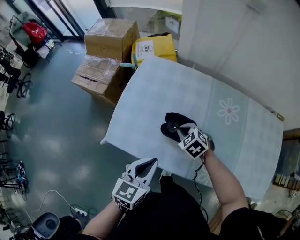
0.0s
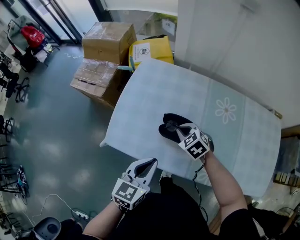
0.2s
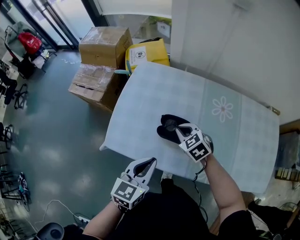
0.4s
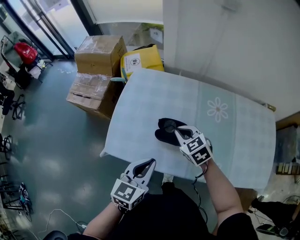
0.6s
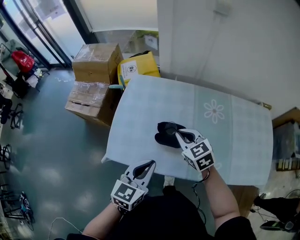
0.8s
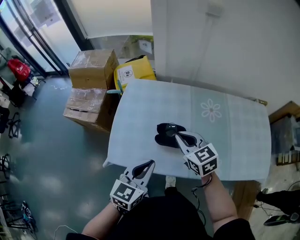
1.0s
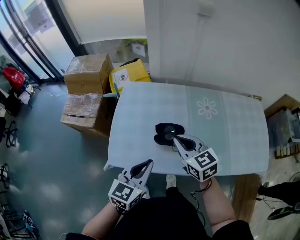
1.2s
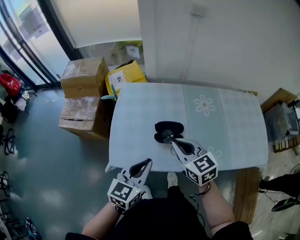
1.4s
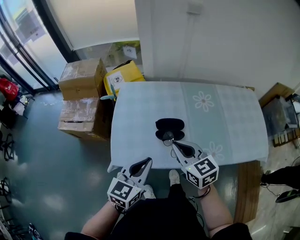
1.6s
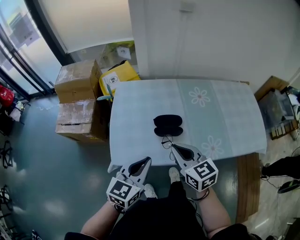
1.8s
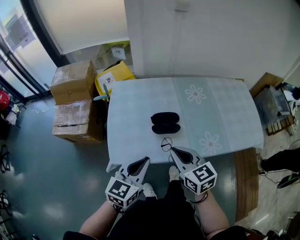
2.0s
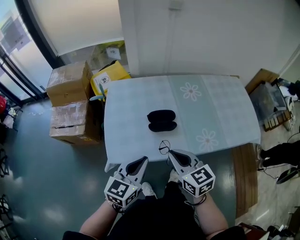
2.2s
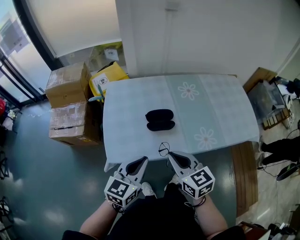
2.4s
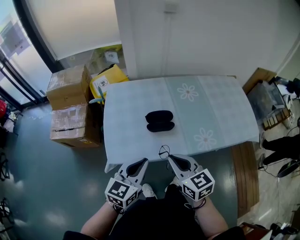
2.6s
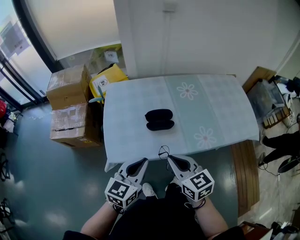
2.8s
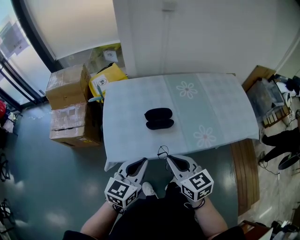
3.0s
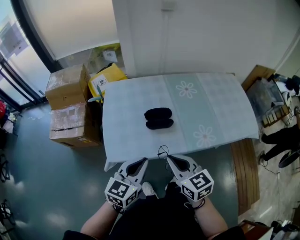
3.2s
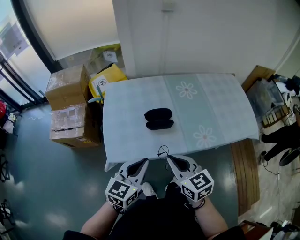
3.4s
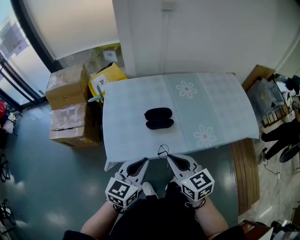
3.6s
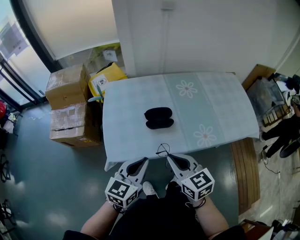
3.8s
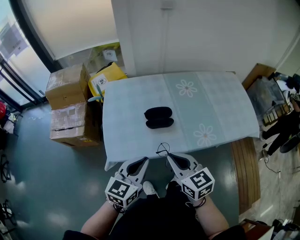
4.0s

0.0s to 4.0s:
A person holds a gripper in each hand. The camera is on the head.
0.0s to 1.4s: The left gripper moves upward, approximately 5 cm, and turns by roughly 20 degrees. The right gripper shifts some 20 cm upward and backward, and tilts its fingers some 30 degrees upward.
1.4s to 2.6s: The right gripper travels backward by about 15 cm; the left gripper moves backward, some 5 cm.
2.6s to 4.0s: Both grippers stay put.

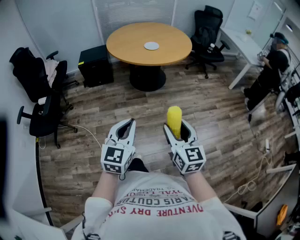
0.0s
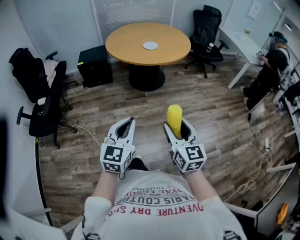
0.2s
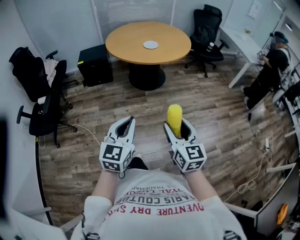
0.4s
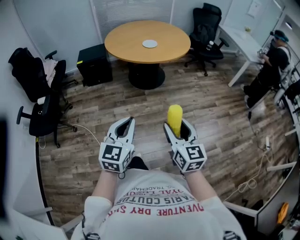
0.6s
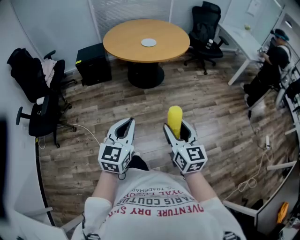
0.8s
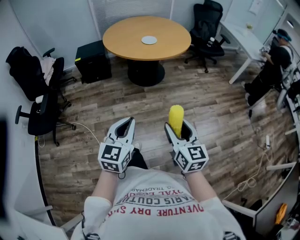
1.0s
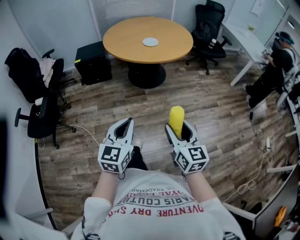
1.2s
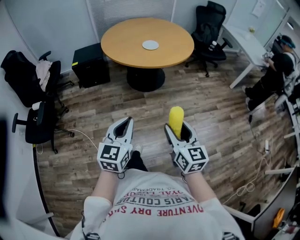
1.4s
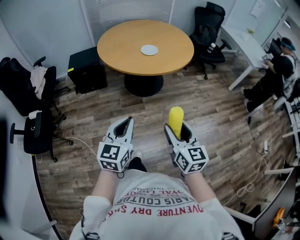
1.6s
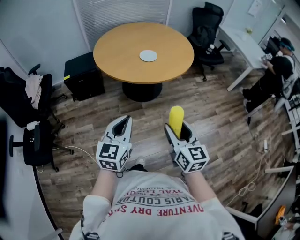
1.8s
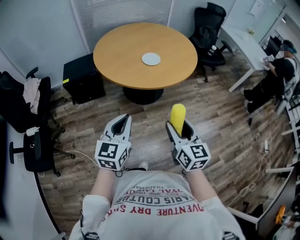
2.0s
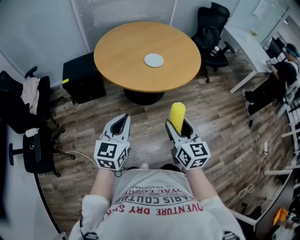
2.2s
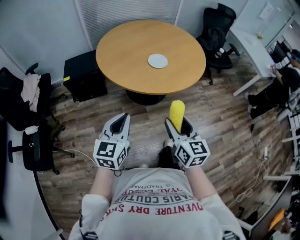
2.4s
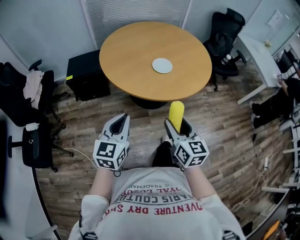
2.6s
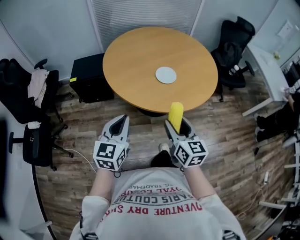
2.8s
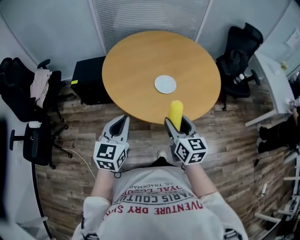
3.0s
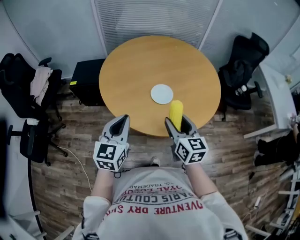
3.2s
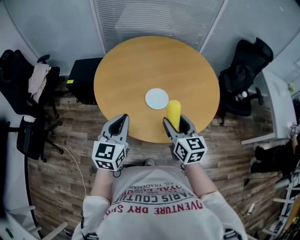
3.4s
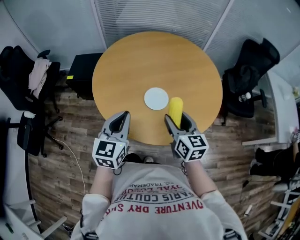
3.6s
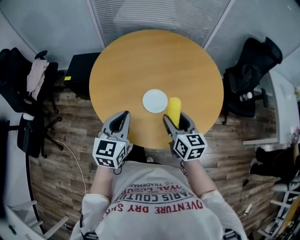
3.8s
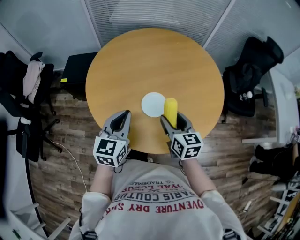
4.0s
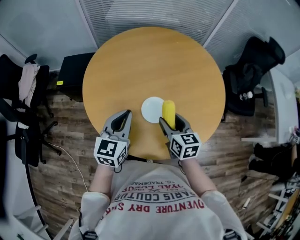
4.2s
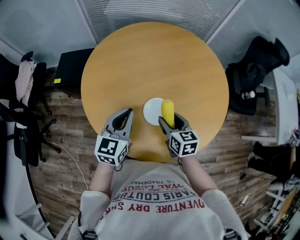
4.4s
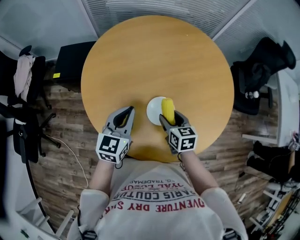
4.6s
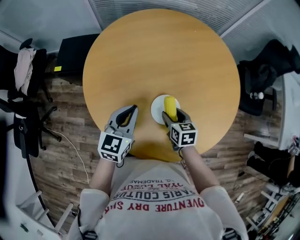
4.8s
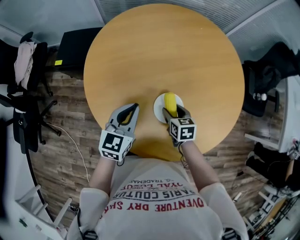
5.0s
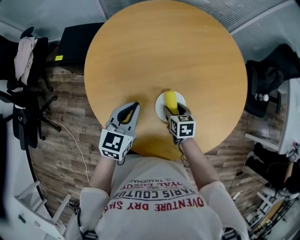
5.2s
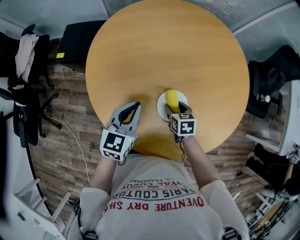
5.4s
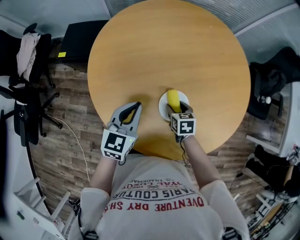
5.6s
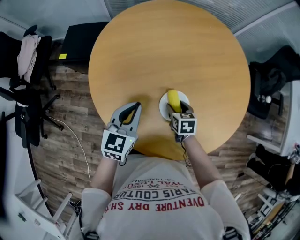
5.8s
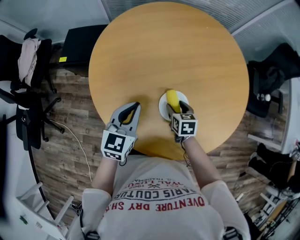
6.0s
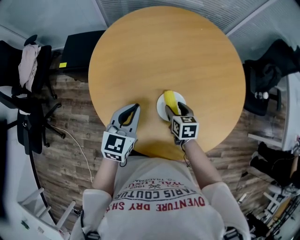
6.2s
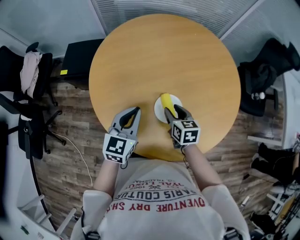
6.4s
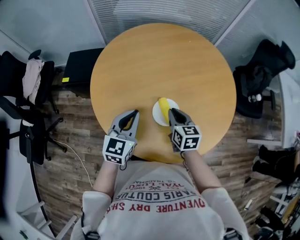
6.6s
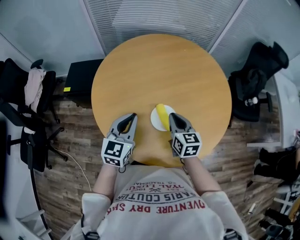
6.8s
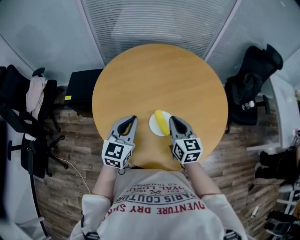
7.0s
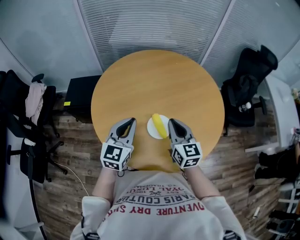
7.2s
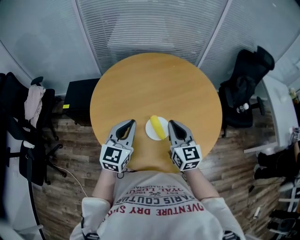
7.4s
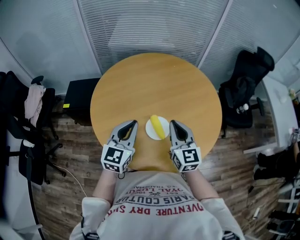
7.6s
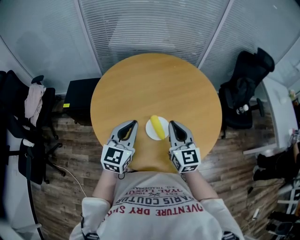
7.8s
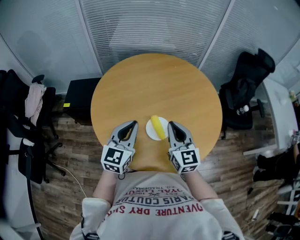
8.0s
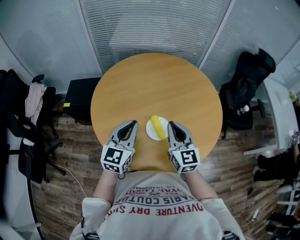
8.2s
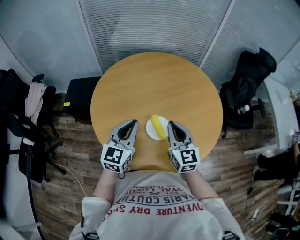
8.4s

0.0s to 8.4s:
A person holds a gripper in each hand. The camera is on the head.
0.0s to 1.4s: Both grippers travel together forward, roughly 10 cm.
1.4s to 2.8s: The two grippers go about 40 cm forward.
2.8s to 4.2s: The left gripper shifts some 35 cm forward and to the right, while the right gripper is displaced forward by about 30 cm, and turns by roughly 20 degrees.
4.2s to 5.6s: The right gripper is displaced downward by some 20 cm, and rotates roughly 30 degrees; the left gripper goes approximately 10 cm downward and forward.
5.6s to 7.0s: The right gripper heads upward, covering about 25 cm, tilts its fingers approximately 40 degrees upward, and closes. The left gripper goes some 10 cm upward.
7.0s to 8.4s: The right gripper is displaced upward by some 5 cm.

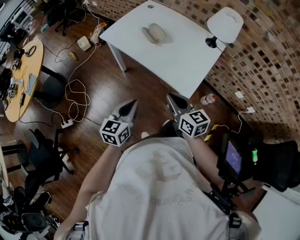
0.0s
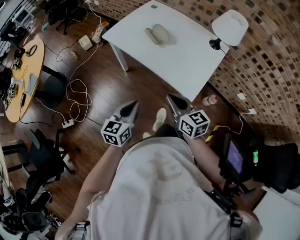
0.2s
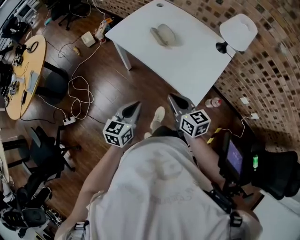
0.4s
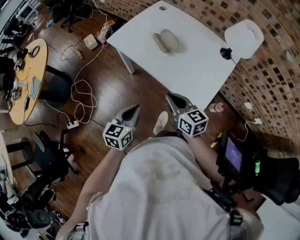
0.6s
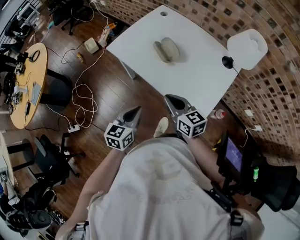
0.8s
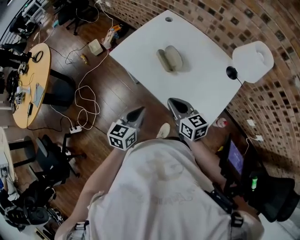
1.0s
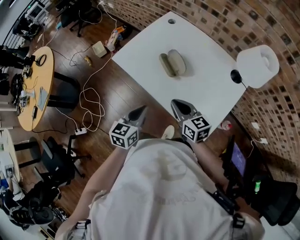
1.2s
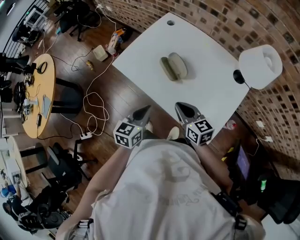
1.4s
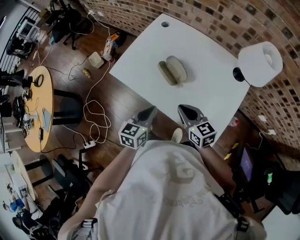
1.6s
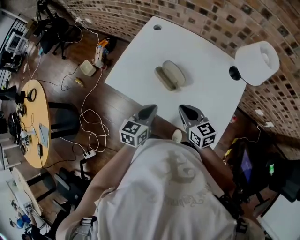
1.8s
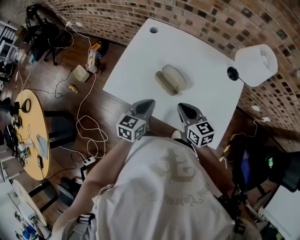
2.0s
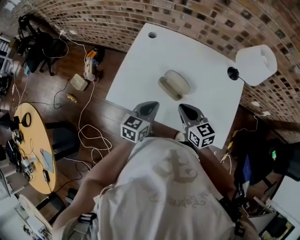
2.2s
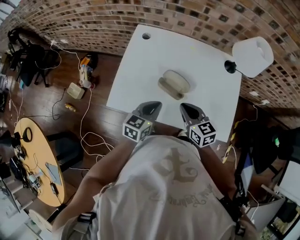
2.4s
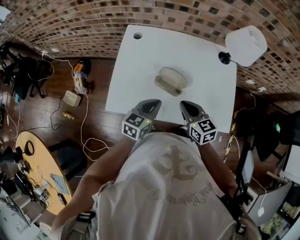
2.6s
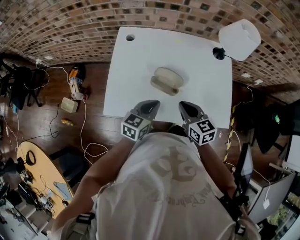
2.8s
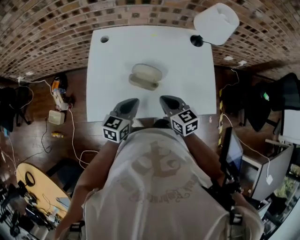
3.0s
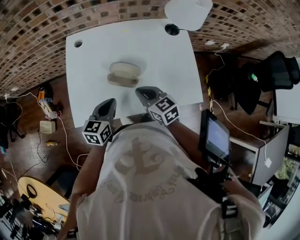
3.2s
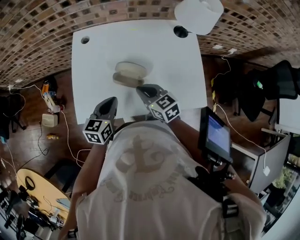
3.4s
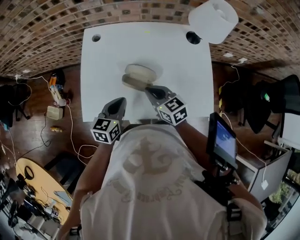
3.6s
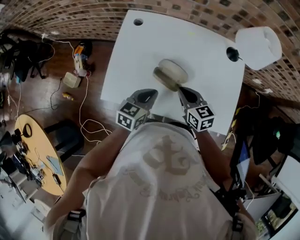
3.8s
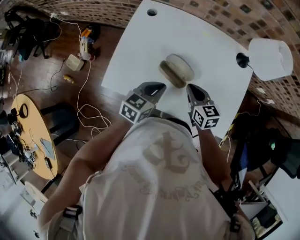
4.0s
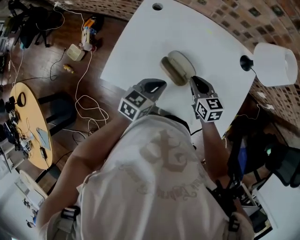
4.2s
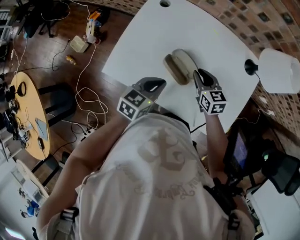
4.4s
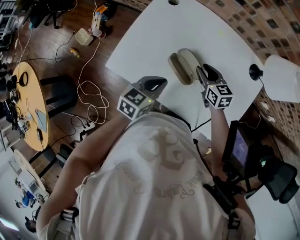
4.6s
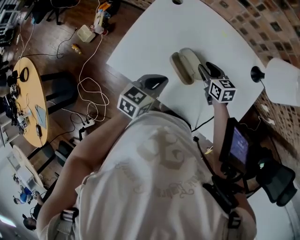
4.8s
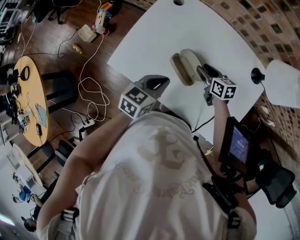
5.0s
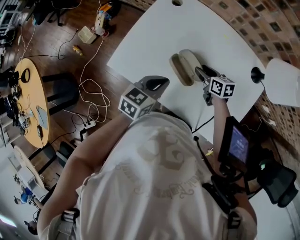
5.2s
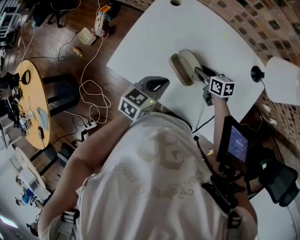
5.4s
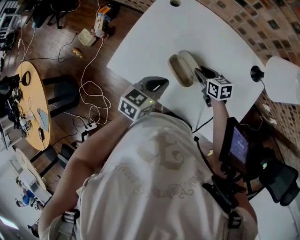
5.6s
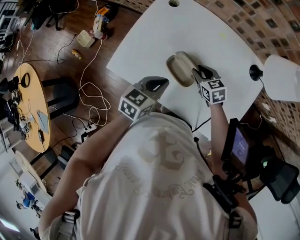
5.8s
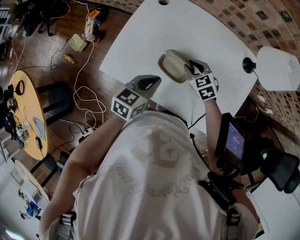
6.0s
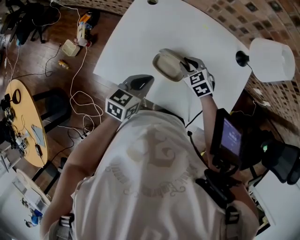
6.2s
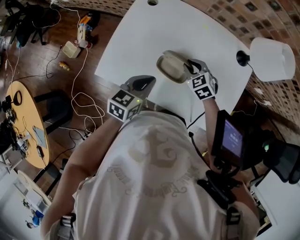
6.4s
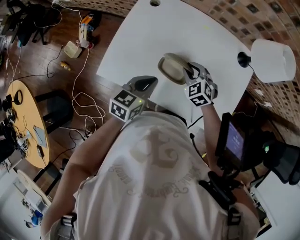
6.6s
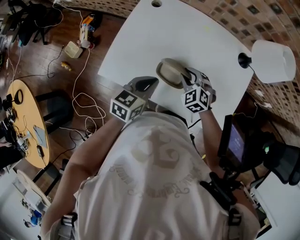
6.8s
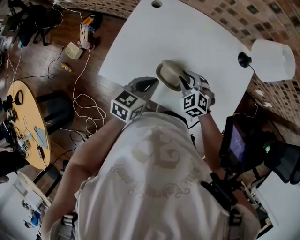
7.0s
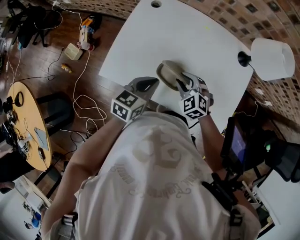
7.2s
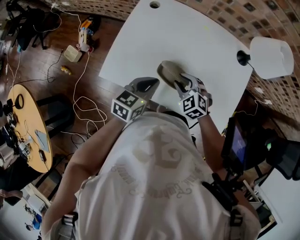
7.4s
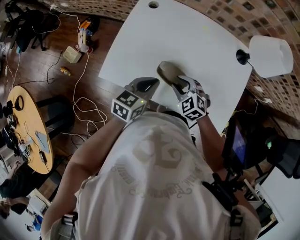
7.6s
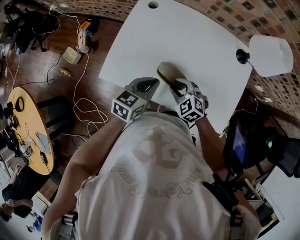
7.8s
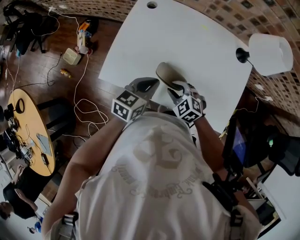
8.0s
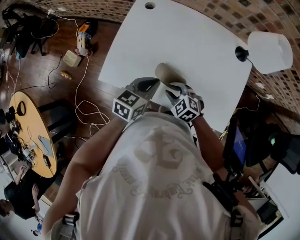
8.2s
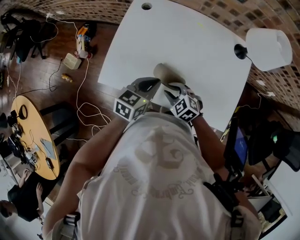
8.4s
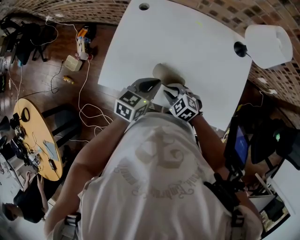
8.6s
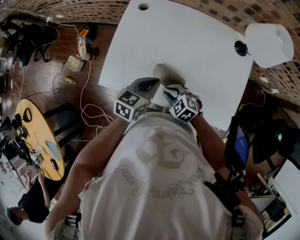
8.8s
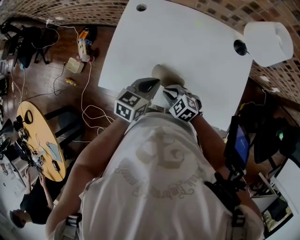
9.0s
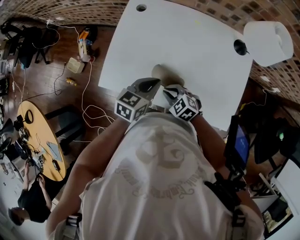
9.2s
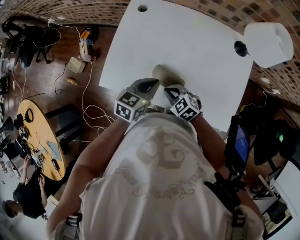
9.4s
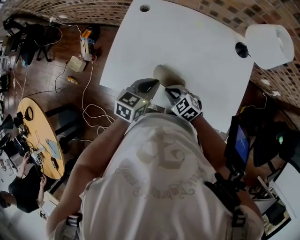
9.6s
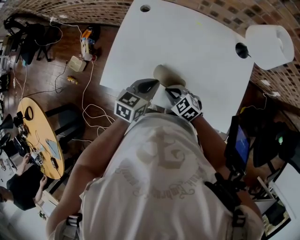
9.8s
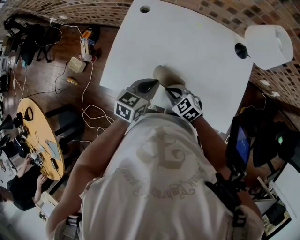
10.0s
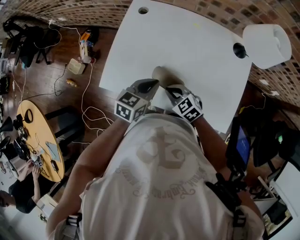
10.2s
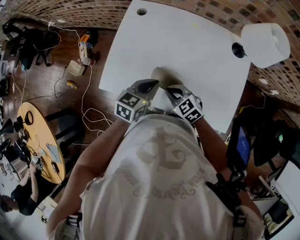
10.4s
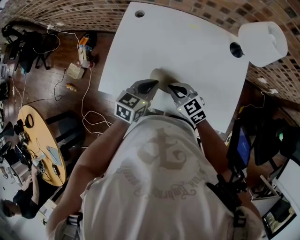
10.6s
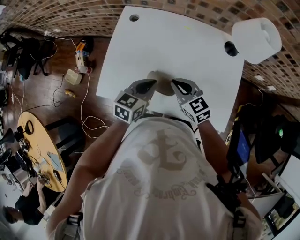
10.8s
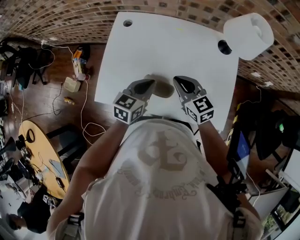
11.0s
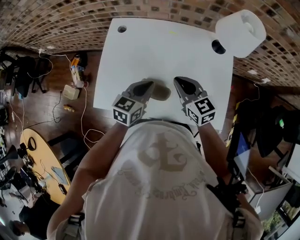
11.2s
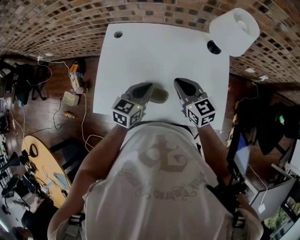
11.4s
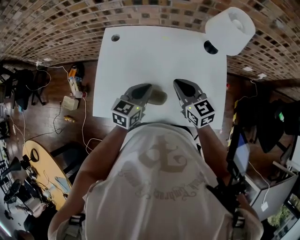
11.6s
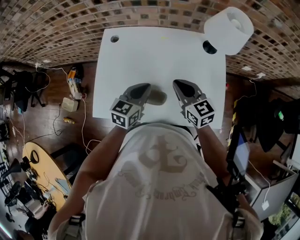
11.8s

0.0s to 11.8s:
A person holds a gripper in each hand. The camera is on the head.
0.0s to 1.4s: The grippers both shift forward by roughly 25 cm.
1.4s to 3.0s: The left gripper changes place by approximately 20 cm, and swivels about 40 degrees, while the right gripper moves about 15 cm, and changes its angle by some 40 degrees.
3.0s to 4.4s: The right gripper goes roughly 15 cm forward and downward.
4.4s to 6.0s: The right gripper swivels approximately 30 degrees.
6.0s to 7.4s: The right gripper travels backward by about 10 cm.
7.4s to 8.8s: The right gripper moves backward, some 5 cm.
8.8s to 10.4s: The grippers stay close to where they were, moving slightly.
10.4s to 11.8s: The right gripper heads upward, to the right and forward, covering some 20 cm, and swivels some 40 degrees; the left gripper changes place by roughly 10 cm.
